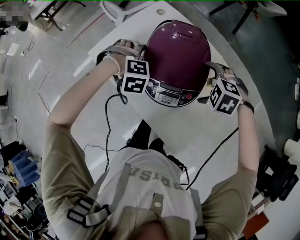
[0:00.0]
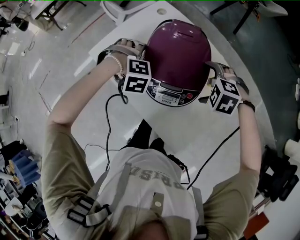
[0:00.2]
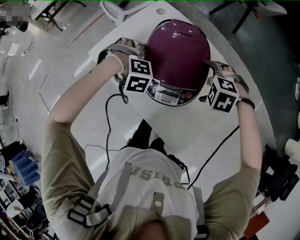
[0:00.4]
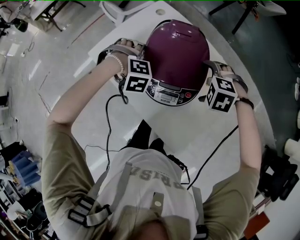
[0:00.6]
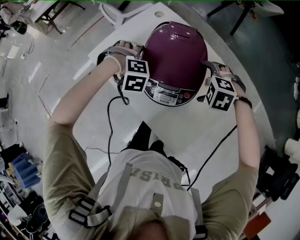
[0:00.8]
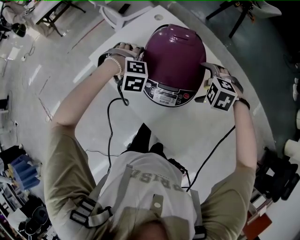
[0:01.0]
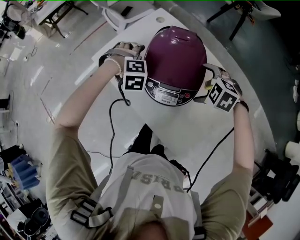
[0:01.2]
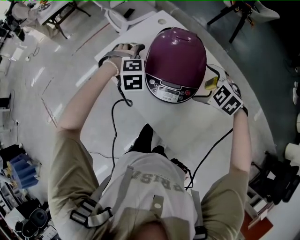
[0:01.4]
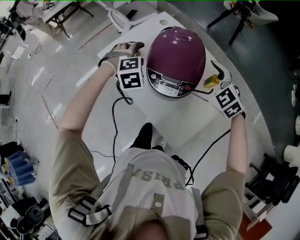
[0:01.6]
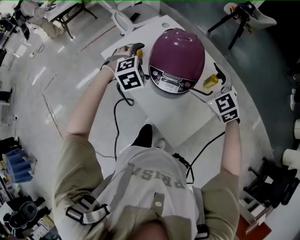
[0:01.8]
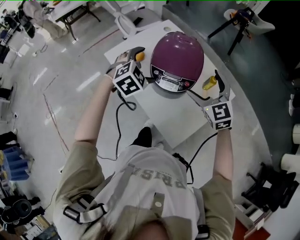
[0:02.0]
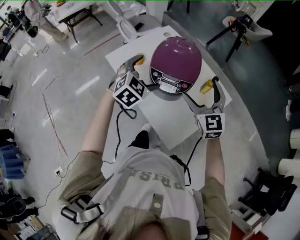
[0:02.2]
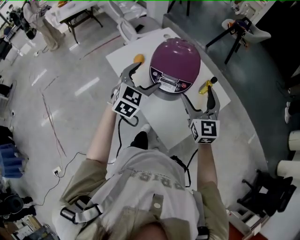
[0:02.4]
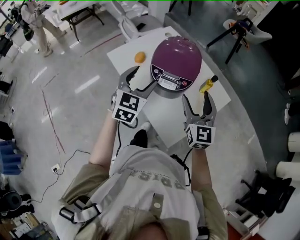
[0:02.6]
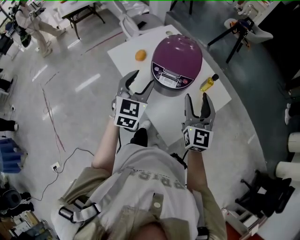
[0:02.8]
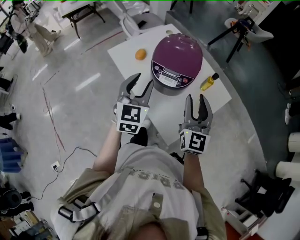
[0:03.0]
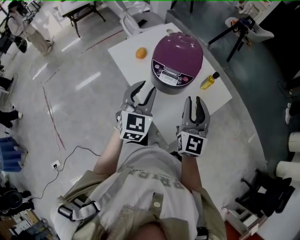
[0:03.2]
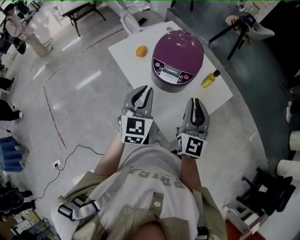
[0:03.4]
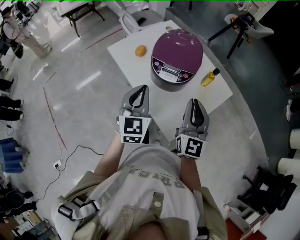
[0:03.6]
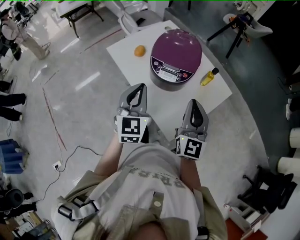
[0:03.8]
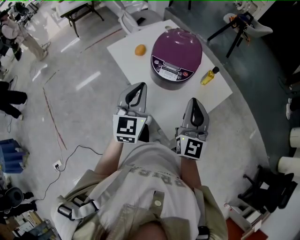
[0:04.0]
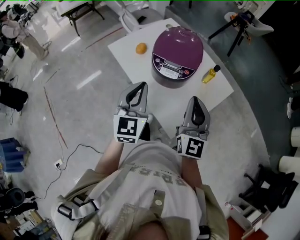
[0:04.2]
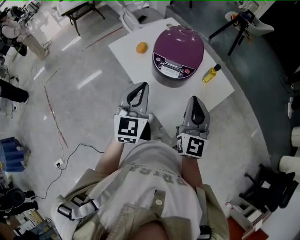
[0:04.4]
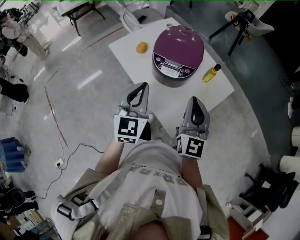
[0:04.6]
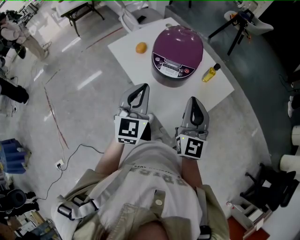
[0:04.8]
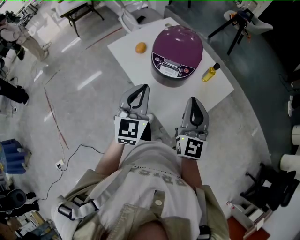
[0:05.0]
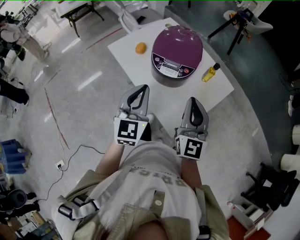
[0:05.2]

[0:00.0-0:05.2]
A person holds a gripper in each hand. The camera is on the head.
0:00.0 to 0:01.8: Both grippers move upward, roughly 10 cm. The right gripper angles its fingers upward, by some 40 degrees. The left gripper turns by roughly 40 degrees.
0:01.8 to 0:03.4: The grippers both shift backward by approximately 20 cm. The left gripper angles its fingers upward, by roughly 40 degrees, and closes. The right gripper angles its fingers upward, by about 30 degrees, and closes up.
0:03.4 to 0:05.2: The grippers move only a little.

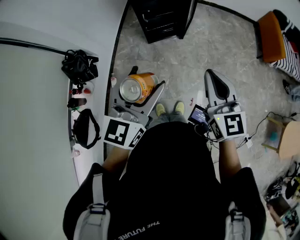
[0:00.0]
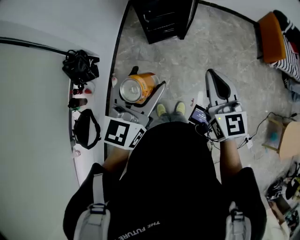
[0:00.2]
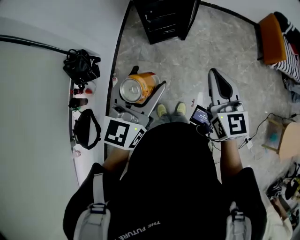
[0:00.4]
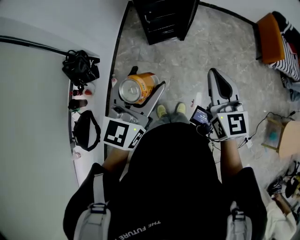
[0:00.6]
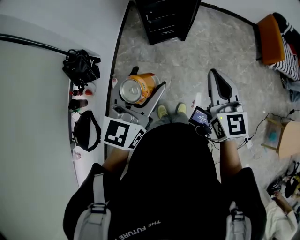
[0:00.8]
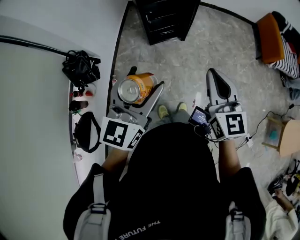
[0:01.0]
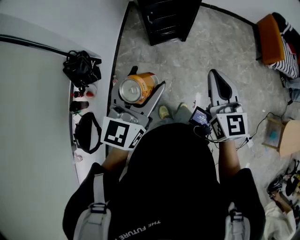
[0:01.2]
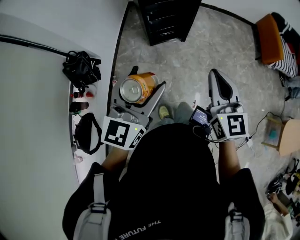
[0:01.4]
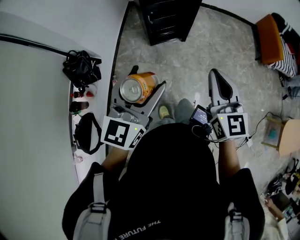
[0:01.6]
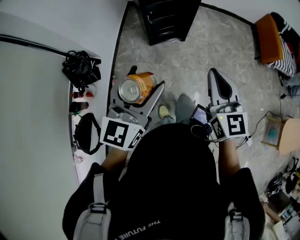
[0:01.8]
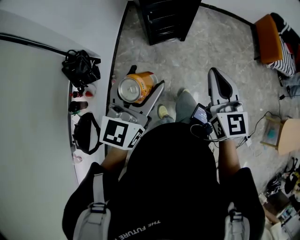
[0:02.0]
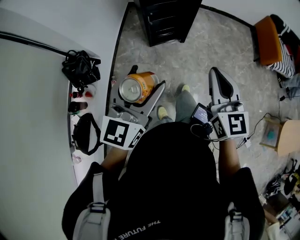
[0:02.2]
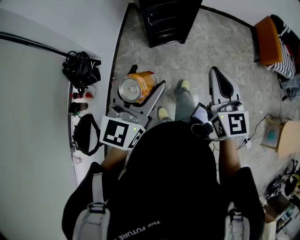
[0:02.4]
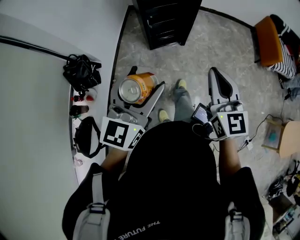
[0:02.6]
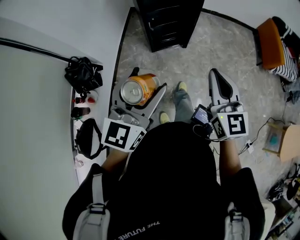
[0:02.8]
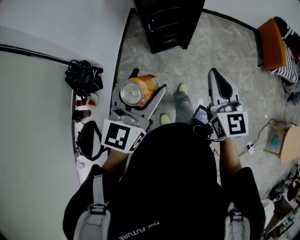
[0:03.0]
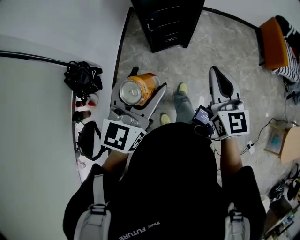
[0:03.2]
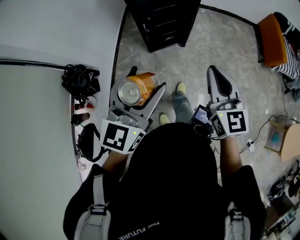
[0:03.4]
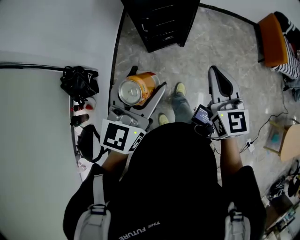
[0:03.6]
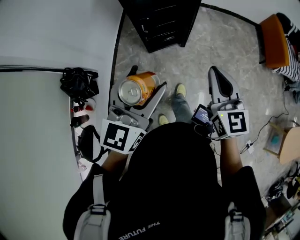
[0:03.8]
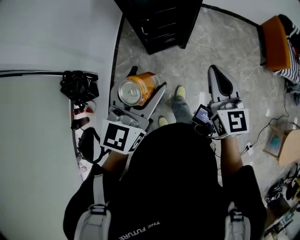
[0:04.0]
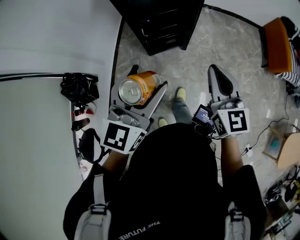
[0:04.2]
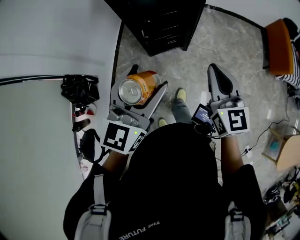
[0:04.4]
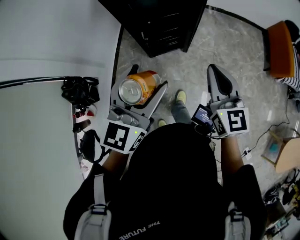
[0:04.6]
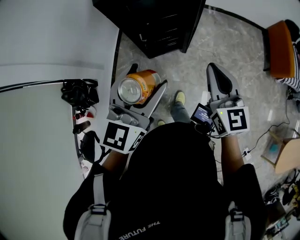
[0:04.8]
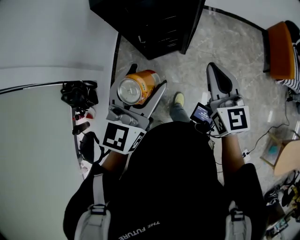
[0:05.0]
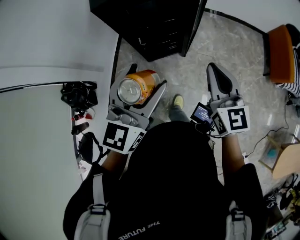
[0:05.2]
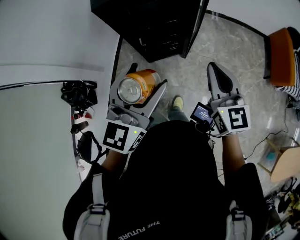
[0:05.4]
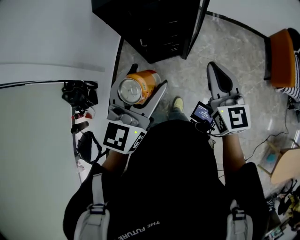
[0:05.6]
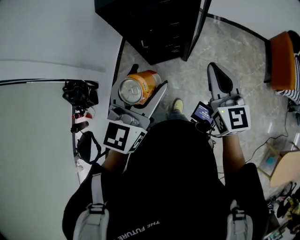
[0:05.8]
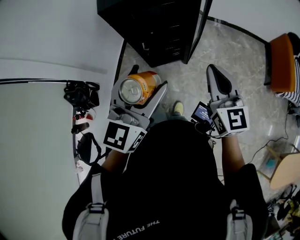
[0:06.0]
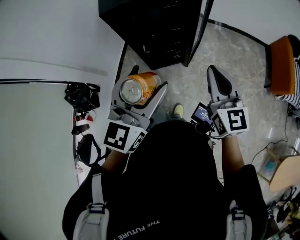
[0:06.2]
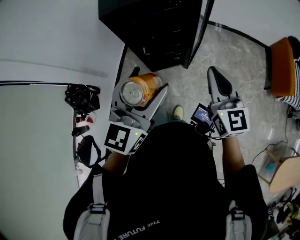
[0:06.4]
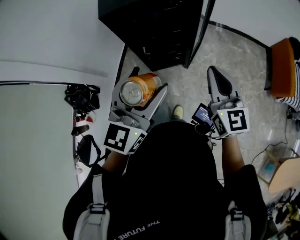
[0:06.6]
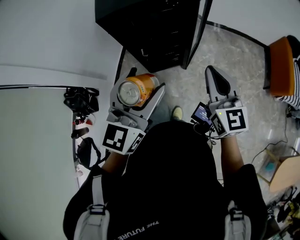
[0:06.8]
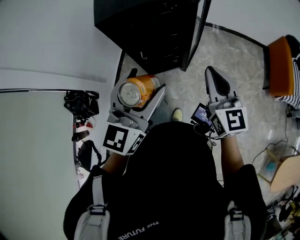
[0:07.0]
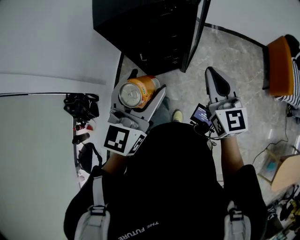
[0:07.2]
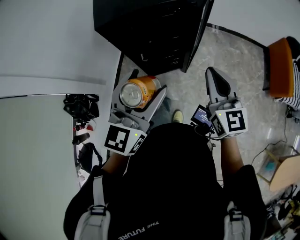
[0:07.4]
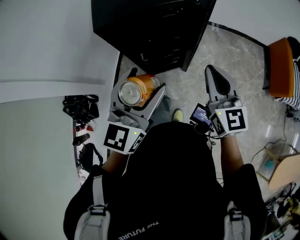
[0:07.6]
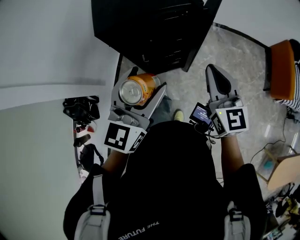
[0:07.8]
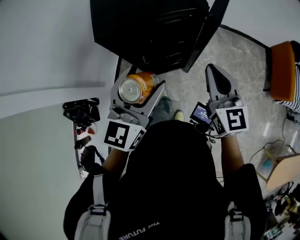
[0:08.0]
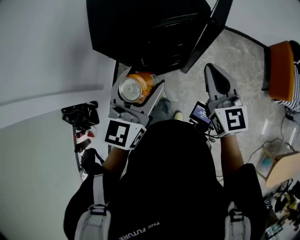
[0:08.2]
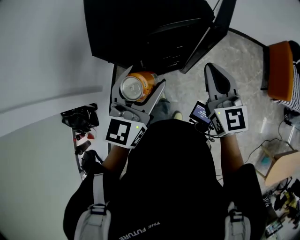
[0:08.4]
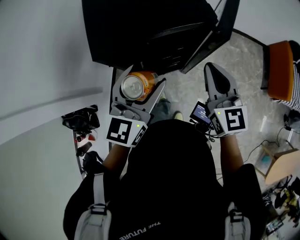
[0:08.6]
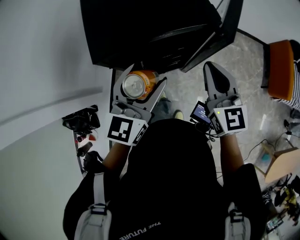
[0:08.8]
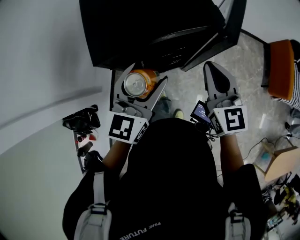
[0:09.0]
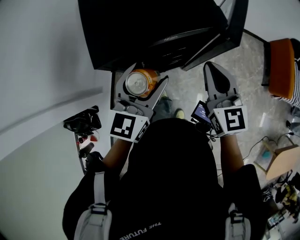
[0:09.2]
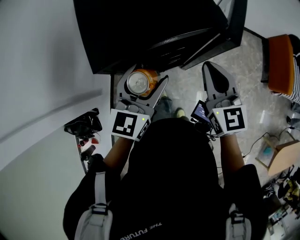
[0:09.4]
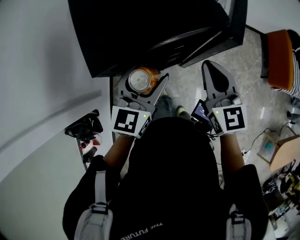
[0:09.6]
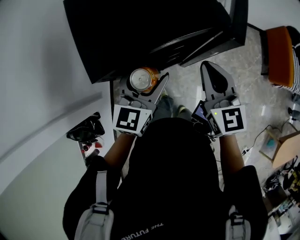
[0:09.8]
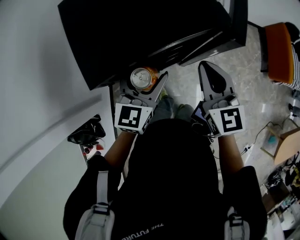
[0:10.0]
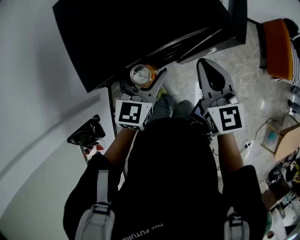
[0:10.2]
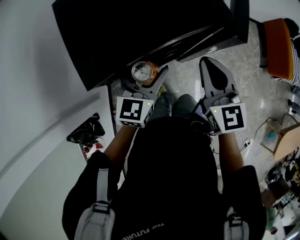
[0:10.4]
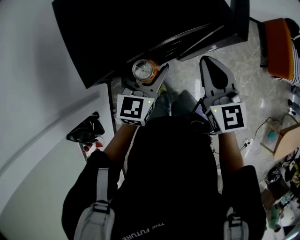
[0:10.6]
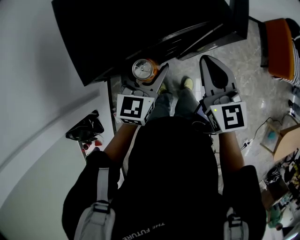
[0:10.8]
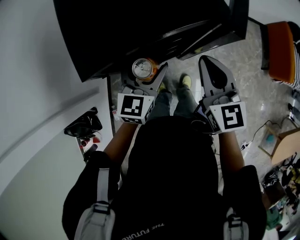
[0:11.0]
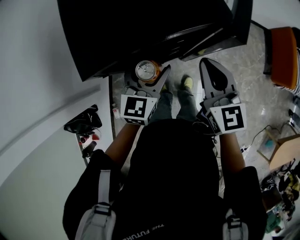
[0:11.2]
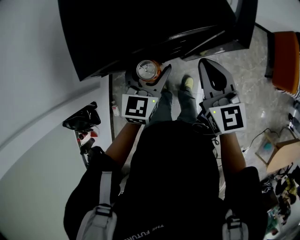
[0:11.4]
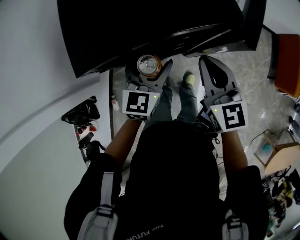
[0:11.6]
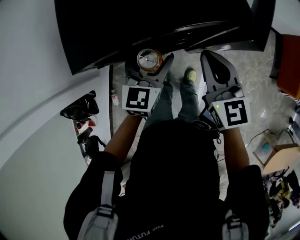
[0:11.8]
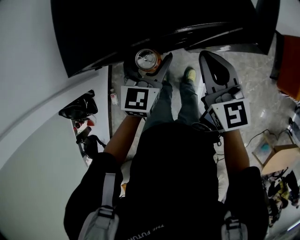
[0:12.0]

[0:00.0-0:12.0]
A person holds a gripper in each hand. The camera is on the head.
0:00.0 to 0:01.6: The grippers both shift to the left by approximately 5 cm.
0:01.6 to 0:03.0: The left gripper shifts by approximately 5 cm. The right gripper heads forward, covering roughly 5 cm.
0:03.0 to 0:04.4: Both grippers move forward, some 20 cm.
0:04.4 to 0:06.0: The right gripper heads forward, covering some 5 cm, while the left gripper is displaced to the right and forward by roughly 10 cm.
0:06.0 to 0:07.6: The grippers both shift forward by some 10 cm.
0:07.6 to 0:09.0: The right gripper goes about 15 cm forward and to the left; the left gripper travels forward and downward by roughly 20 cm.
0:09.0 to 0:10.4: The left gripper is displaced downward and forward by approximately 10 cm.
0:10.4 to 0:12.0: The right gripper ends up approximately 5 cm from where it was.

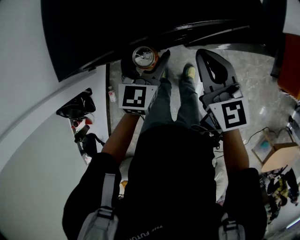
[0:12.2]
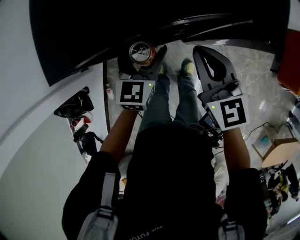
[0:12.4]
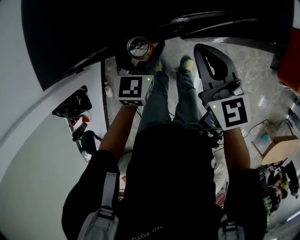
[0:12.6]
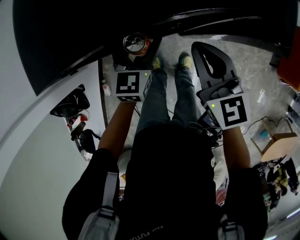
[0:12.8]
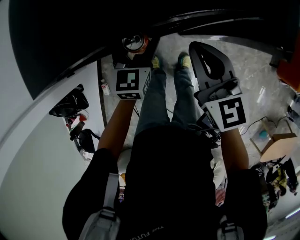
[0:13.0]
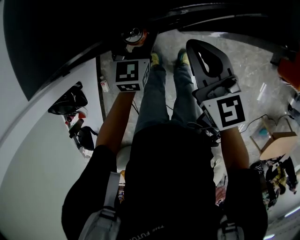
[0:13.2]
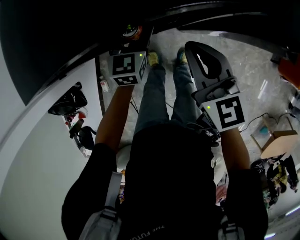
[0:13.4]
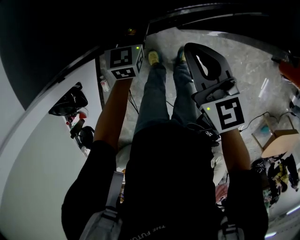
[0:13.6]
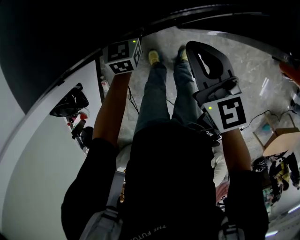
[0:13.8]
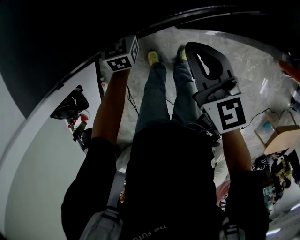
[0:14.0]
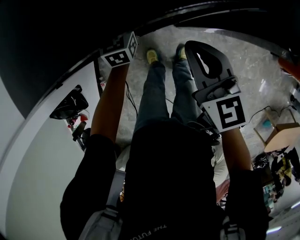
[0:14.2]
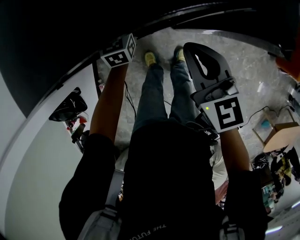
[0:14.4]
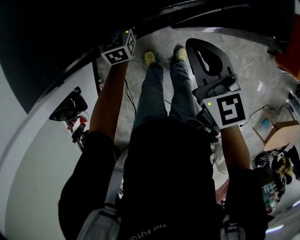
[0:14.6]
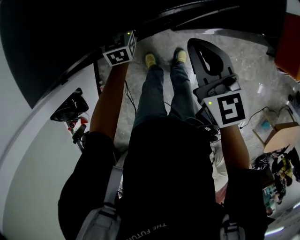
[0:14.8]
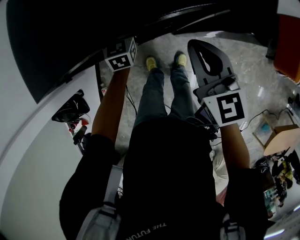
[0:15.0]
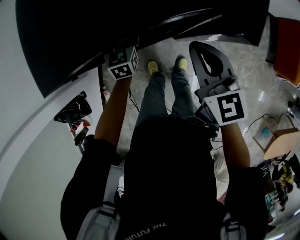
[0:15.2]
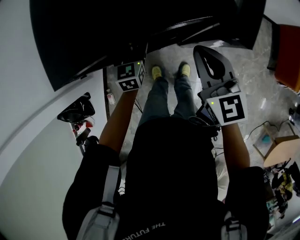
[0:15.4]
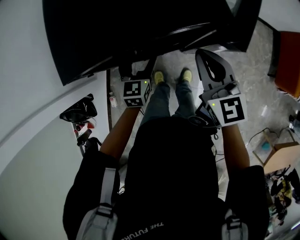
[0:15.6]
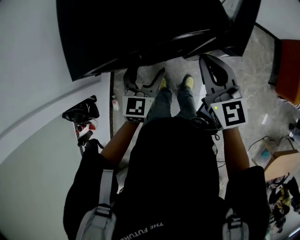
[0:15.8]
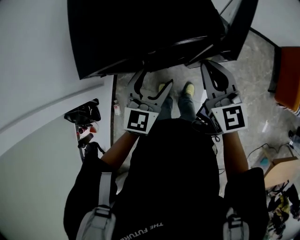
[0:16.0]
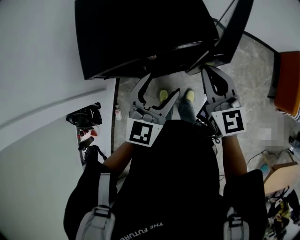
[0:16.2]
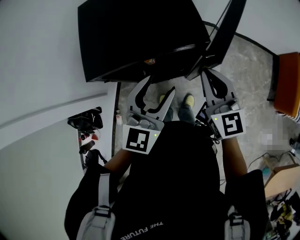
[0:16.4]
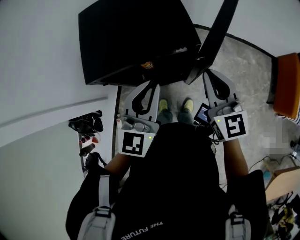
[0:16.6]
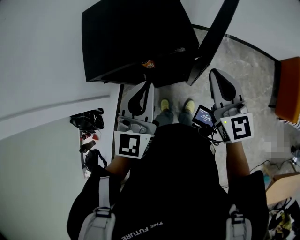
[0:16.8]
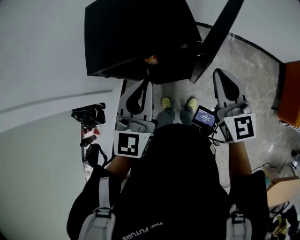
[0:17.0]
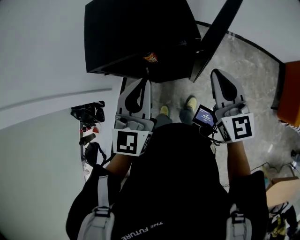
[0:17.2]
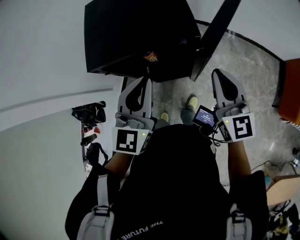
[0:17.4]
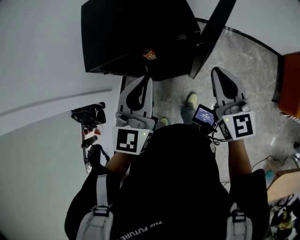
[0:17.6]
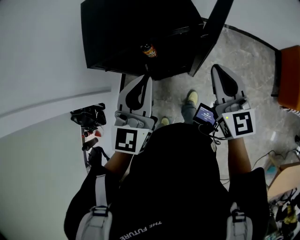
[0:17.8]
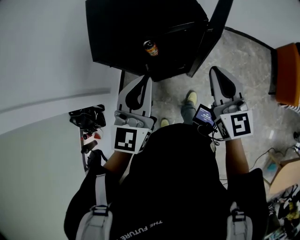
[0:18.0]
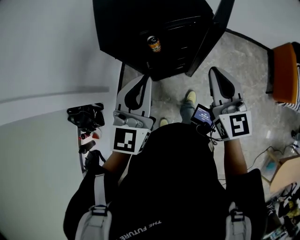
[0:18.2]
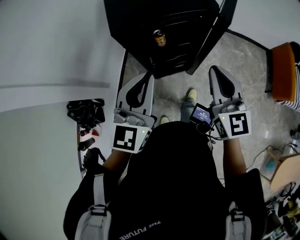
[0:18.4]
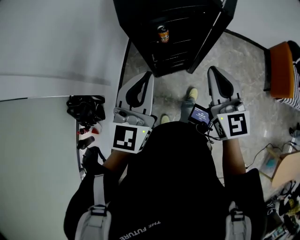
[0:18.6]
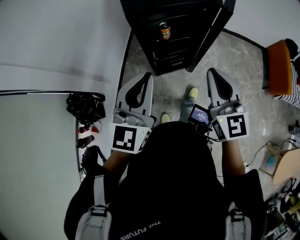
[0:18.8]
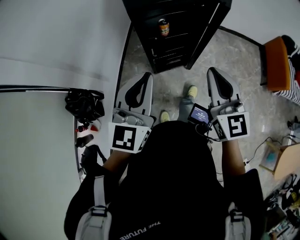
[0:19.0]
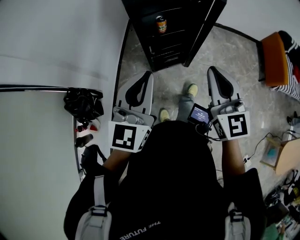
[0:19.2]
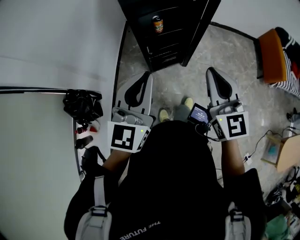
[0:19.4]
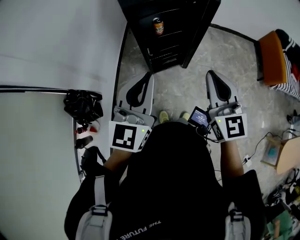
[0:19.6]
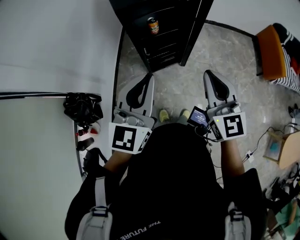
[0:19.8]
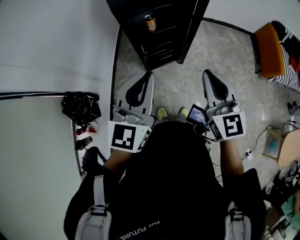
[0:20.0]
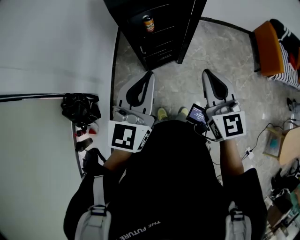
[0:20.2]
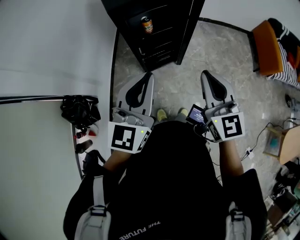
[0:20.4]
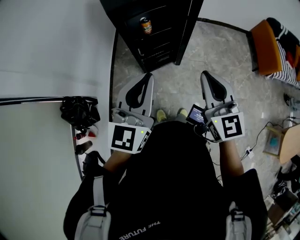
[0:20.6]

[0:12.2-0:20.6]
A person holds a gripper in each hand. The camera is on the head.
0:12.2 to 0:13.6: The right gripper shifts some 5 cm downward; the left gripper goes approximately 15 cm downward and forward.
0:13.6 to 0:15.0: The grippers move only a little.
0:15.0 to 0:16.4: The right gripper is displaced upward by some 10 cm; the left gripper is displaced upward and backward by some 35 cm, and changes its angle by roughly 30 degrees.
0:16.4 to 0:17.8: The left gripper moves about 5 cm, and closes up, while the right gripper is displaced backward by approximately 5 cm.
0:17.8 to 0:19.2: Both grippers travel together backward and to the left, roughly 30 cm.
0:19.2 to 0:20.6: The left gripper changes place by roughly 5 cm.
